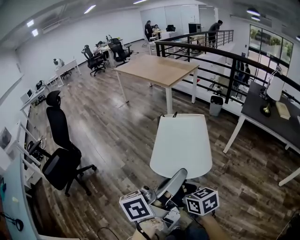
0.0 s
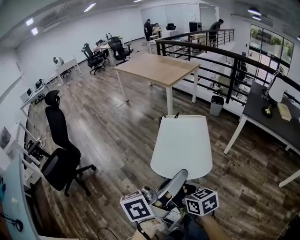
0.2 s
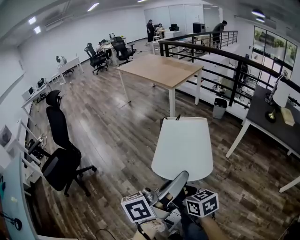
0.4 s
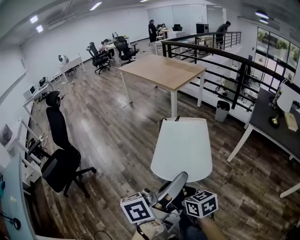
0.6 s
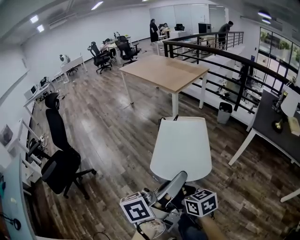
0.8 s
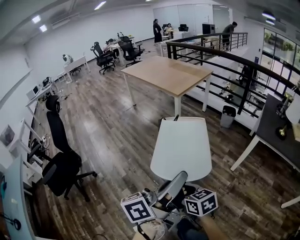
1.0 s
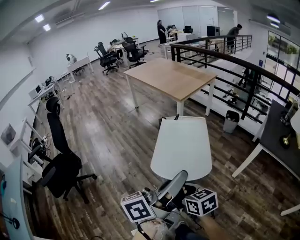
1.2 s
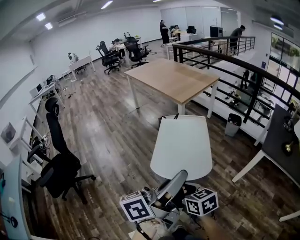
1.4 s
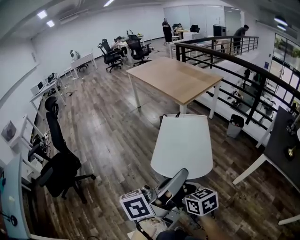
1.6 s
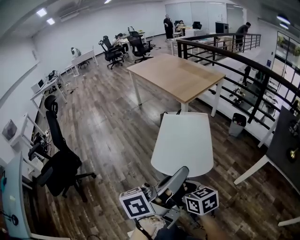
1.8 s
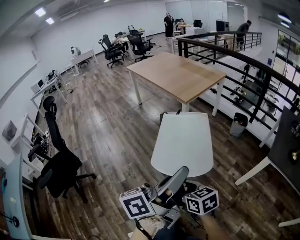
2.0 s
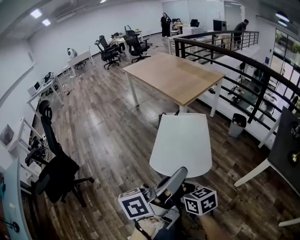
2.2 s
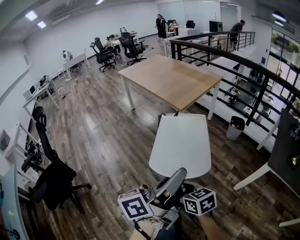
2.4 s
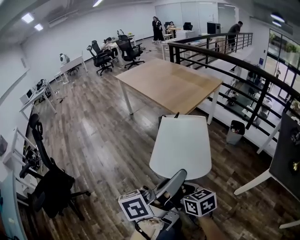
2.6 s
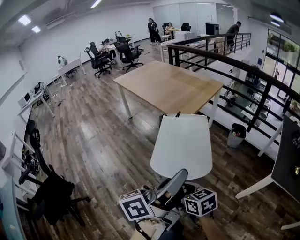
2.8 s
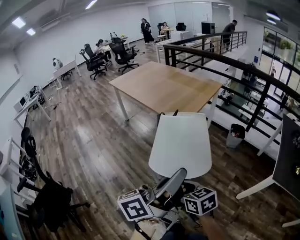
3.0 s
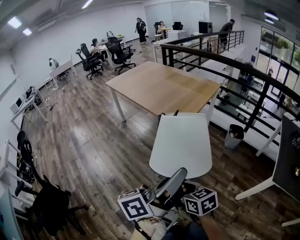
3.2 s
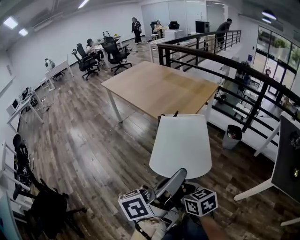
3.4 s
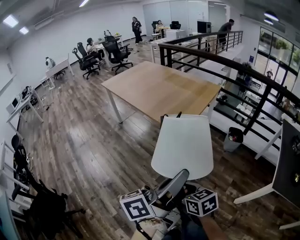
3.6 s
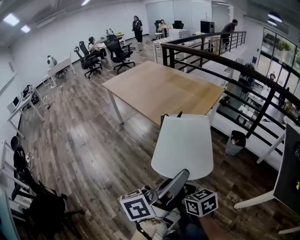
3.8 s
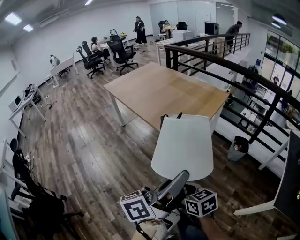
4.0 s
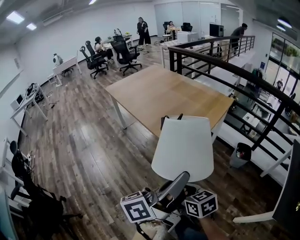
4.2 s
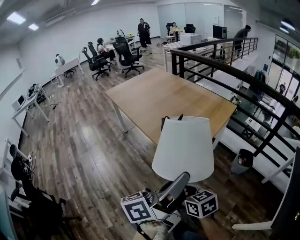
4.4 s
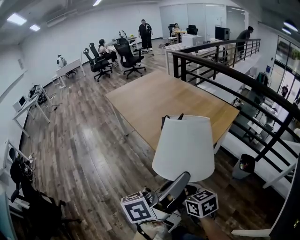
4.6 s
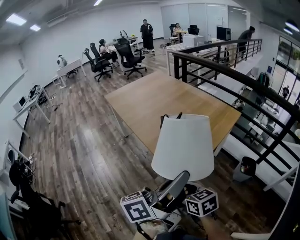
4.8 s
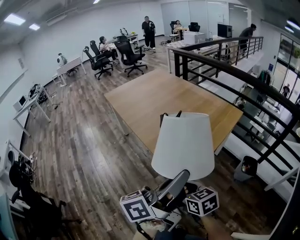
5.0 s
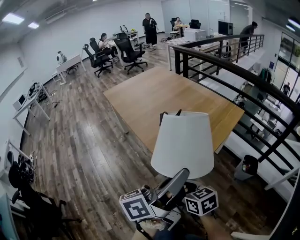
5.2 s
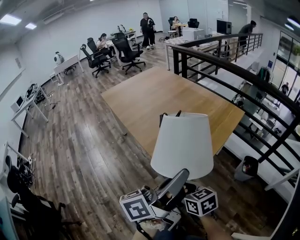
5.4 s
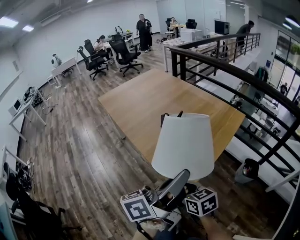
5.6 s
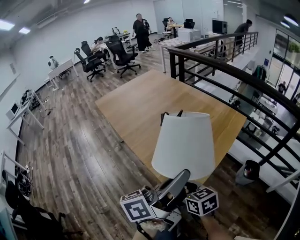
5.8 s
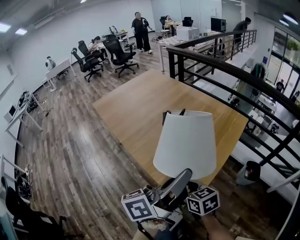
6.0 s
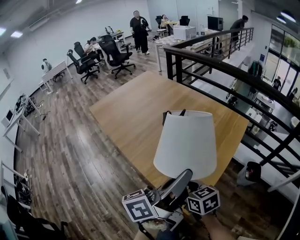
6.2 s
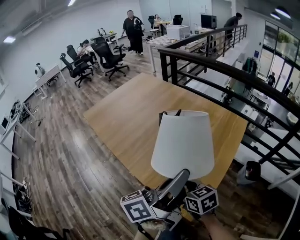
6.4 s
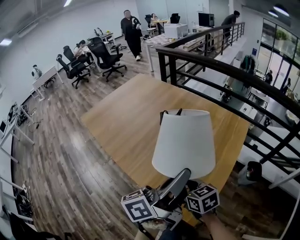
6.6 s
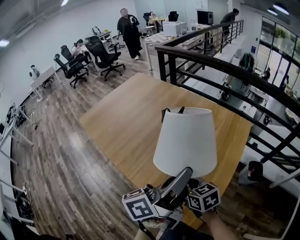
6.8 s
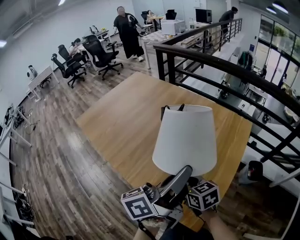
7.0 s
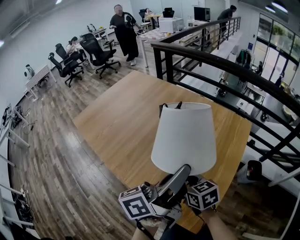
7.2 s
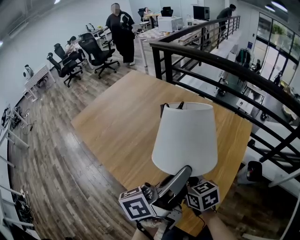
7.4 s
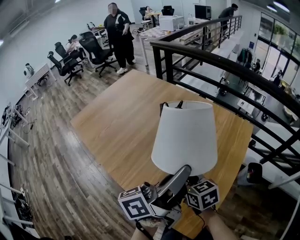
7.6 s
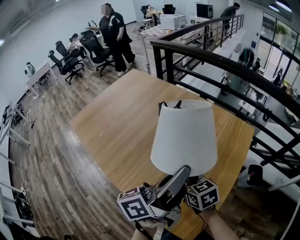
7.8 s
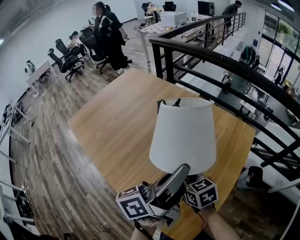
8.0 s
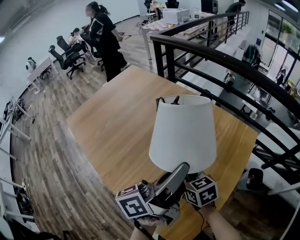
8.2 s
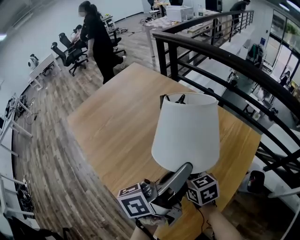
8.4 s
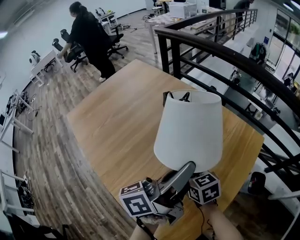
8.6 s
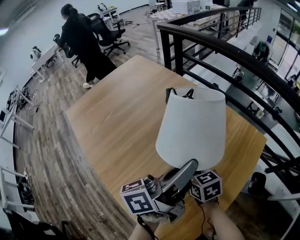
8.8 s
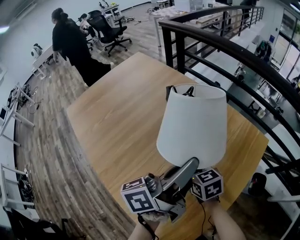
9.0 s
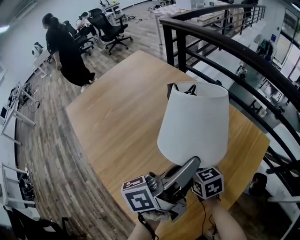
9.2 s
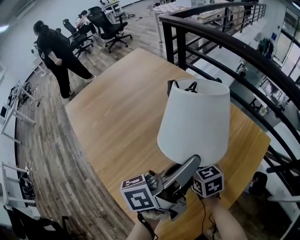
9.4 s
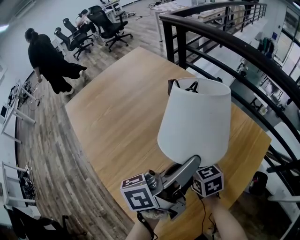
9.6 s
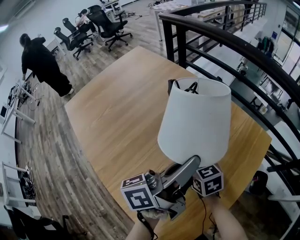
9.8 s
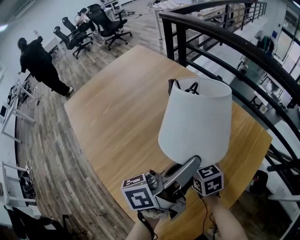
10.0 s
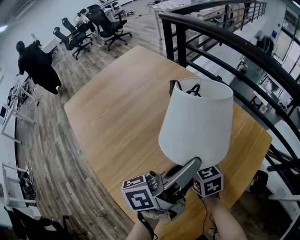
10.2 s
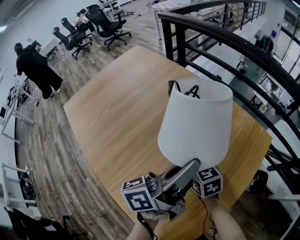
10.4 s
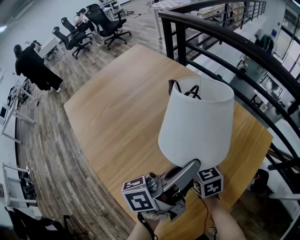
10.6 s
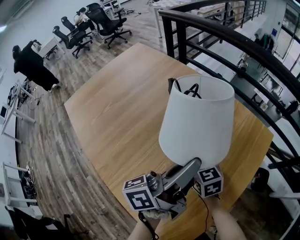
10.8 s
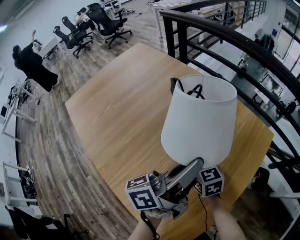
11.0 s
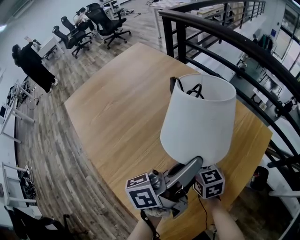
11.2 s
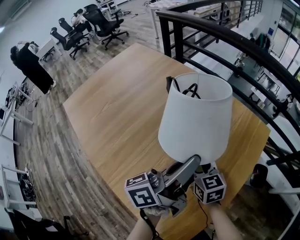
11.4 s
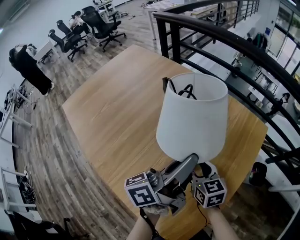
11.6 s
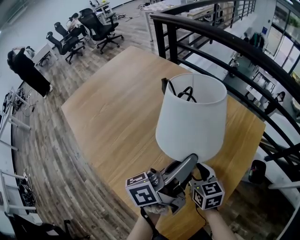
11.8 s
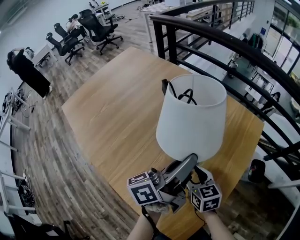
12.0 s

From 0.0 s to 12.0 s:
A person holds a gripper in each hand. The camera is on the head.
From 0.0 s to 1.6 s: The two grippers go some 35 cm forward.
From 1.6 s to 3.0 s: The two grippers go some 30 cm forward.
From 3.0 s to 4.4 s: The two grippers go approximately 30 cm forward.
From 4.4 s to 6.0 s: The grippers both shift forward by some 25 cm.
From 6.0 s to 7.6 s: Both grippers travel together forward, approximately 20 cm.
From 7.6 s to 9.0 s: Both grippers travel together forward, some 15 cm.
From 9.0 s to 10.4 s: The grippers stay close to where they were, moving slightly.
From 10.4 s to 12.0 s: The left gripper moves about 5 cm, while the right gripper heads backward, covering about 10 cm.

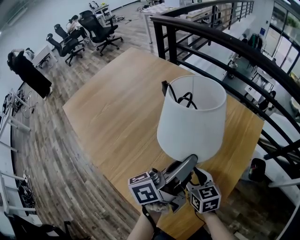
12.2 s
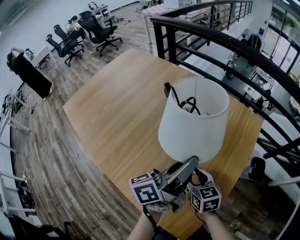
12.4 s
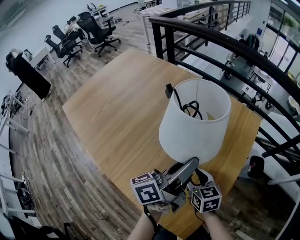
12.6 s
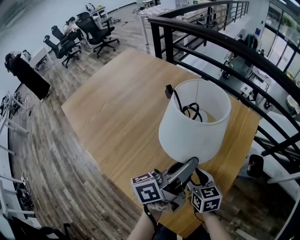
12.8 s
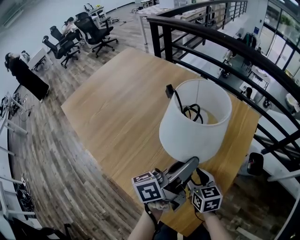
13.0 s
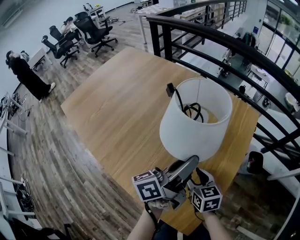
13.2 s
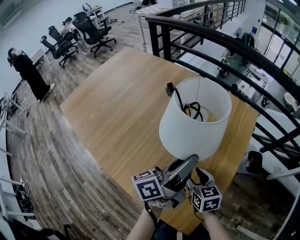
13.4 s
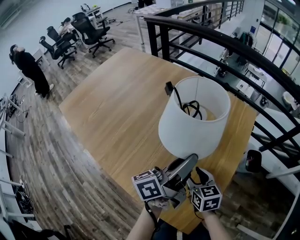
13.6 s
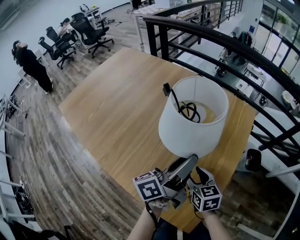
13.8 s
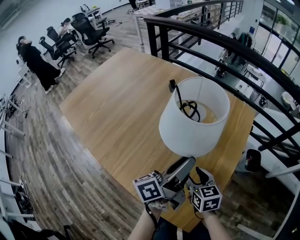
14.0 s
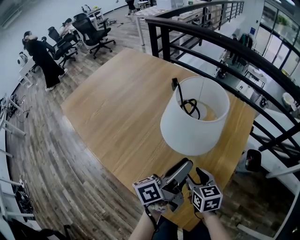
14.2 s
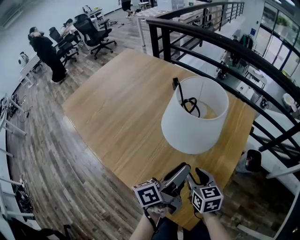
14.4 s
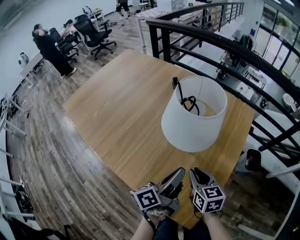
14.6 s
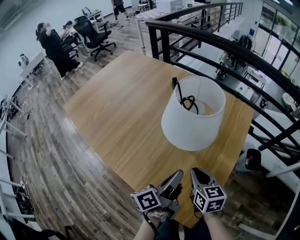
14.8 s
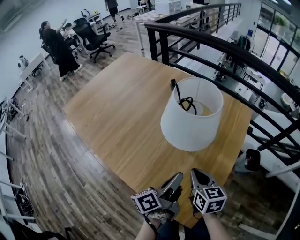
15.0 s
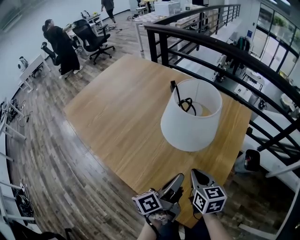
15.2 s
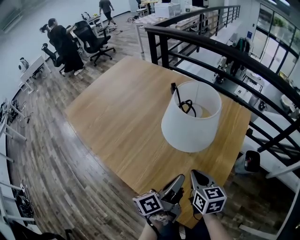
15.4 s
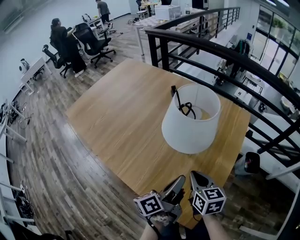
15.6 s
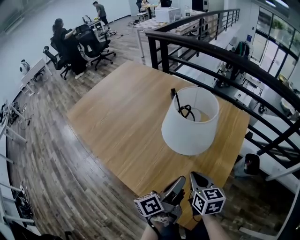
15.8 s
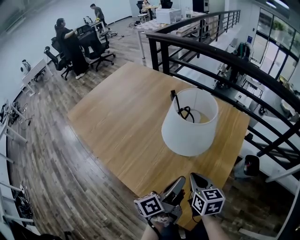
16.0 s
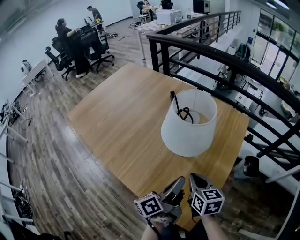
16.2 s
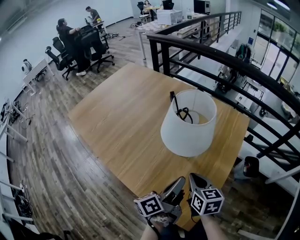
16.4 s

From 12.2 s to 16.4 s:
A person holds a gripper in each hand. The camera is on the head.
From 12.2 s to 13.6 s: The grippers move only a little.
From 13.6 s to 15.0 s: The left gripper is displaced backward and downward by about 10 cm, and closes. Meanwhile the right gripper goes some 5 cm upward, and closes its fingers.
From 15.0 s to 16.4 s: The grippers move only a little.

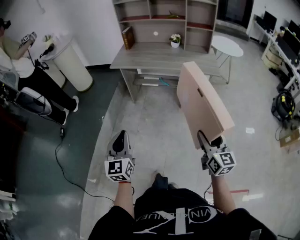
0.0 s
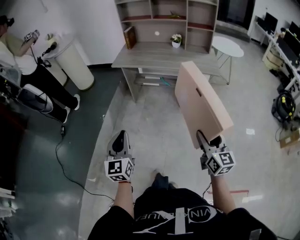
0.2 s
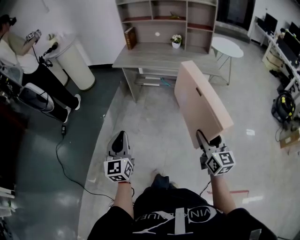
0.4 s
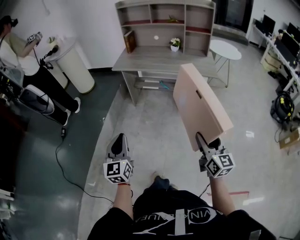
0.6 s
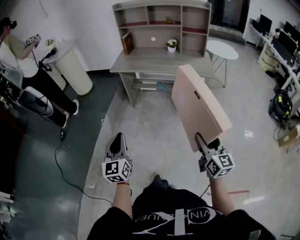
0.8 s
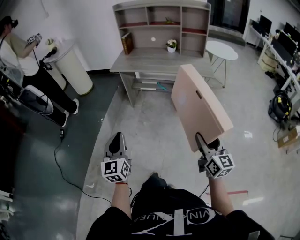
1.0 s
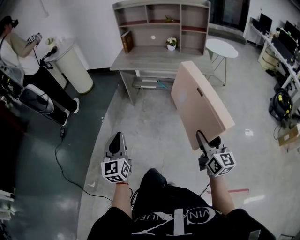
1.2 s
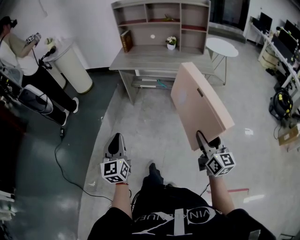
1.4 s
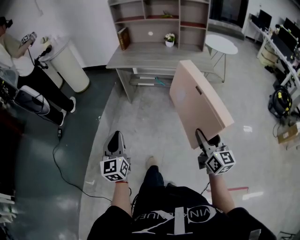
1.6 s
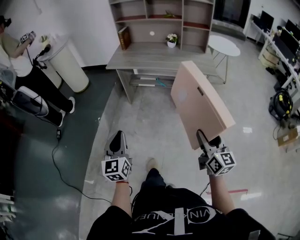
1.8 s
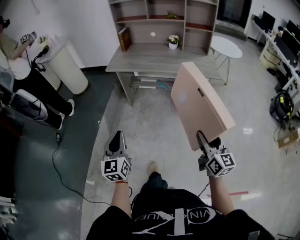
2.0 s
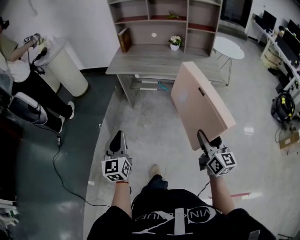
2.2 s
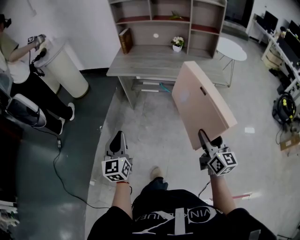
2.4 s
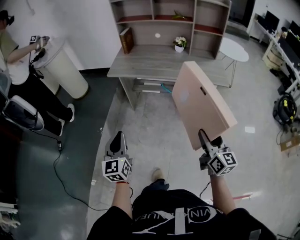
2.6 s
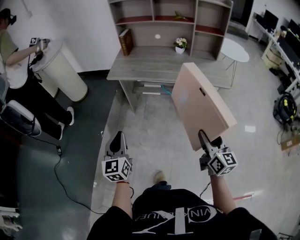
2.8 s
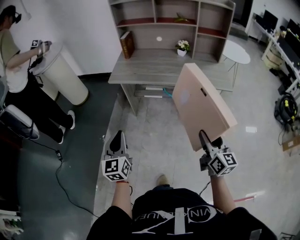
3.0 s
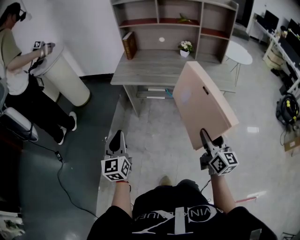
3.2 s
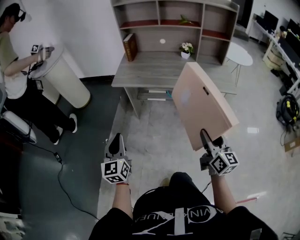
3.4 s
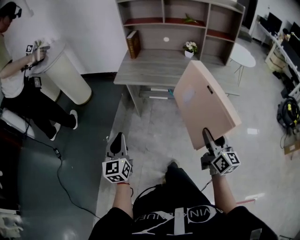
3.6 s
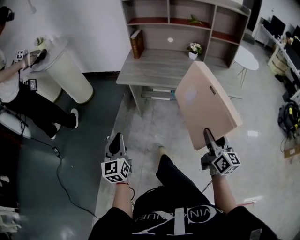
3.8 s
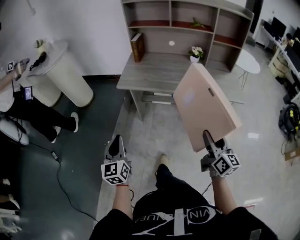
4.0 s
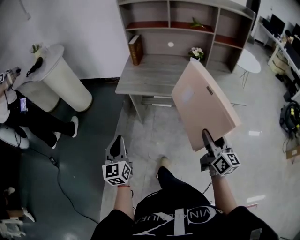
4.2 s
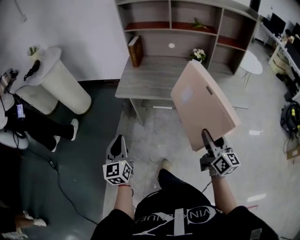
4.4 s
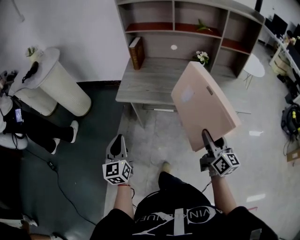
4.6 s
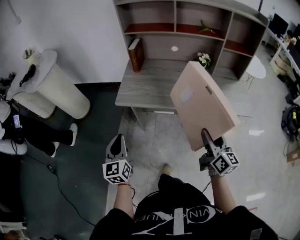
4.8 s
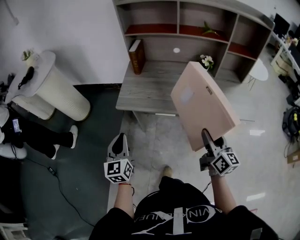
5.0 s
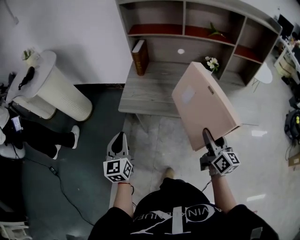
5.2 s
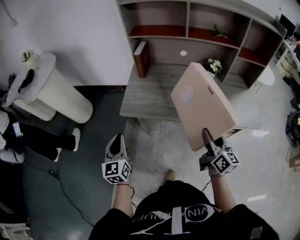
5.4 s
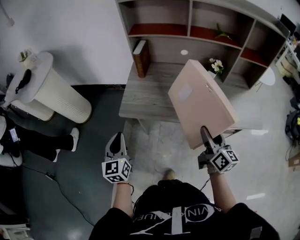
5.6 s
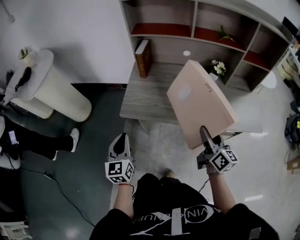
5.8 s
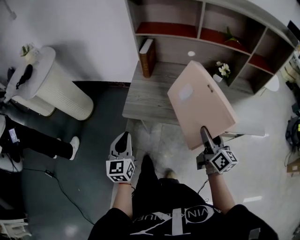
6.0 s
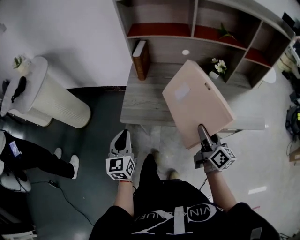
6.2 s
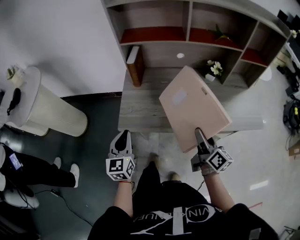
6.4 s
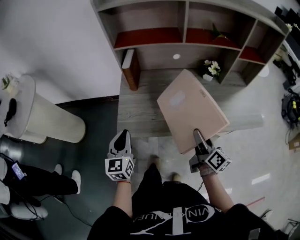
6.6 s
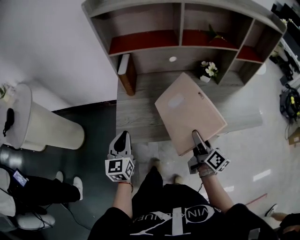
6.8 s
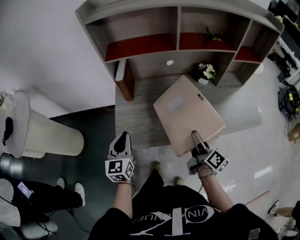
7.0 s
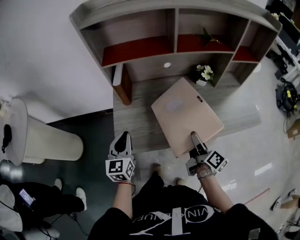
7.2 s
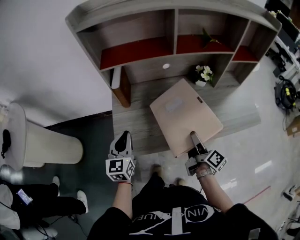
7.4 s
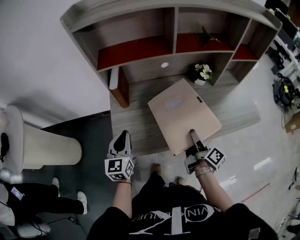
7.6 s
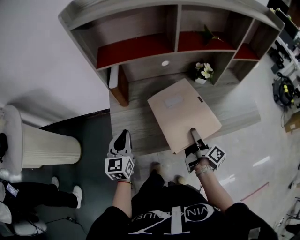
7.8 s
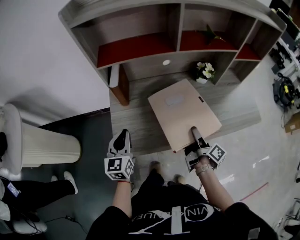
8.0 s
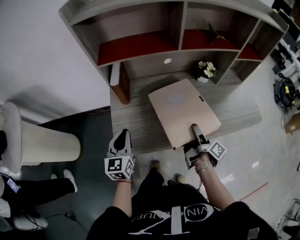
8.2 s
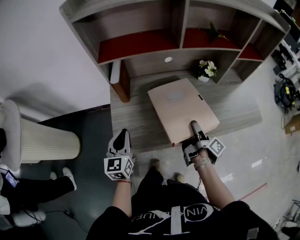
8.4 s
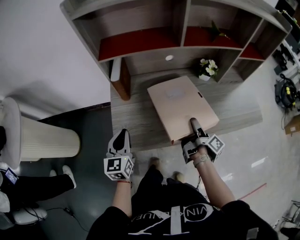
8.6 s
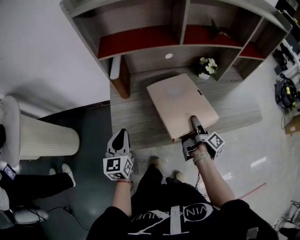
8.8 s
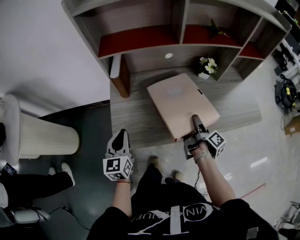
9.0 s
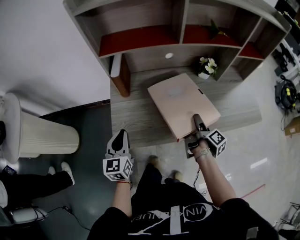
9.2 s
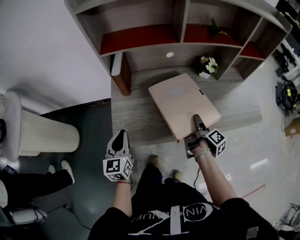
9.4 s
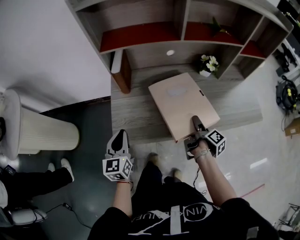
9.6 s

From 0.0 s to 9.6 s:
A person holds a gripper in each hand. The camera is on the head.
From 1.6 s to 3.2 s: Both grippers travel together forward, approximately 25 cm.
From 3.2 s to 4.8 s: Both grippers move forward, about 25 cm.
From 4.8 s to 6.4 s: The two grippers go roughly 20 cm forward. The right gripper changes its angle by approximately 20 degrees.
From 6.4 s to 8.0 s: The right gripper shifts approximately 10 cm forward and downward, and swivels roughly 40 degrees. The left gripper shifts roughly 15 cm forward.
From 8.0 s to 9.6 s: The left gripper heads backward, covering roughly 5 cm; the right gripper changes its angle by approximately 20 degrees.
